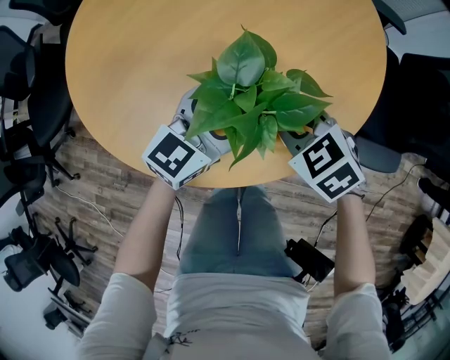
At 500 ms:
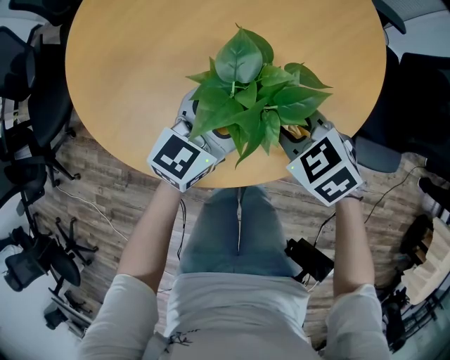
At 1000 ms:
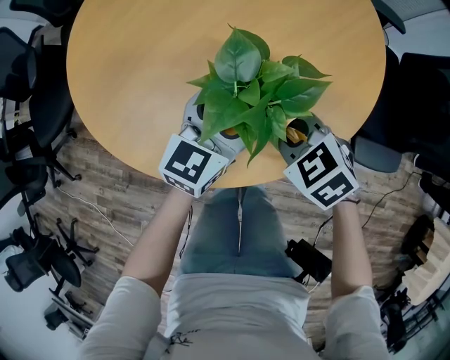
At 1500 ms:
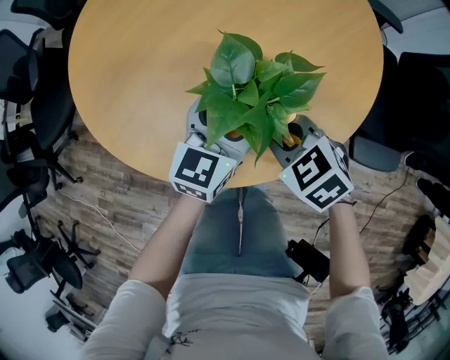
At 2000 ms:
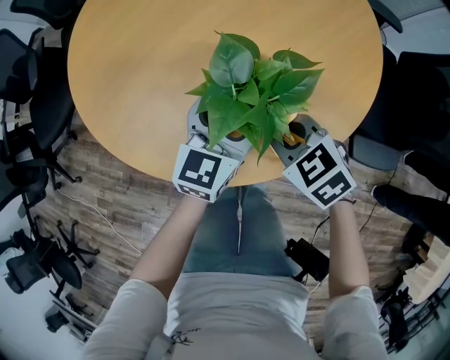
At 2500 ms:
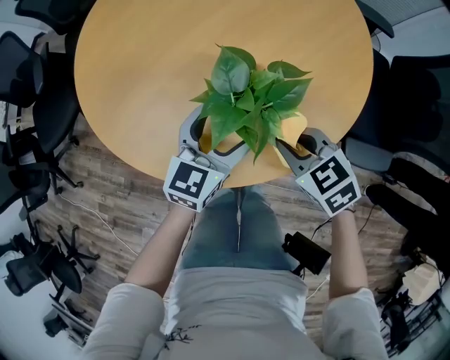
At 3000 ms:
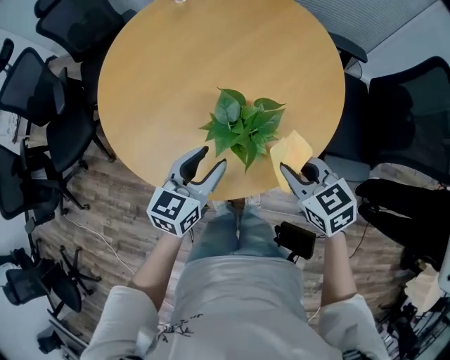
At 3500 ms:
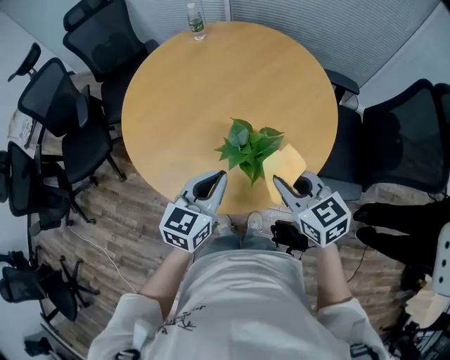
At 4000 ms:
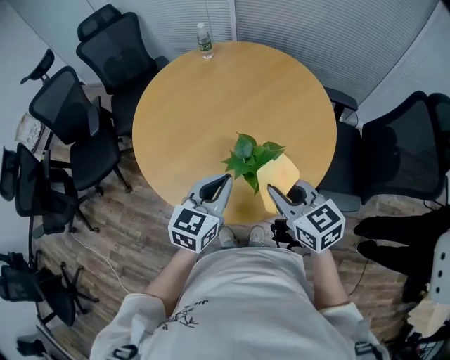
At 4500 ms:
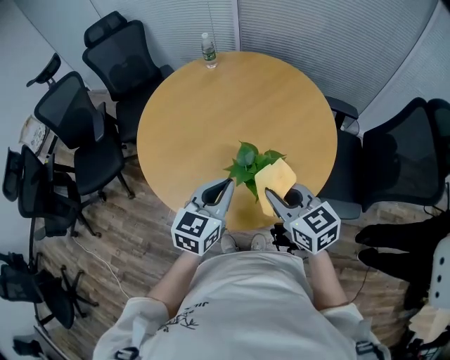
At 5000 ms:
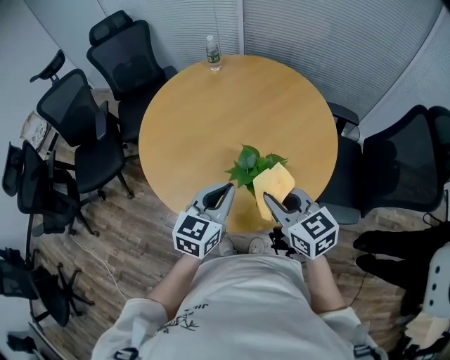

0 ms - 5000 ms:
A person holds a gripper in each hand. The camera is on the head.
2500 ms - 5000 ms: Both grippers travel together upward, roughly 20 cm. The left gripper closes up; the right gripper changes its angle by approximately 30 degrees.

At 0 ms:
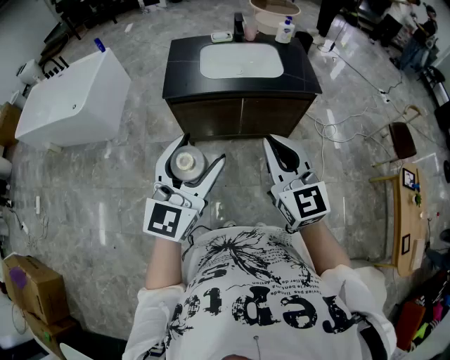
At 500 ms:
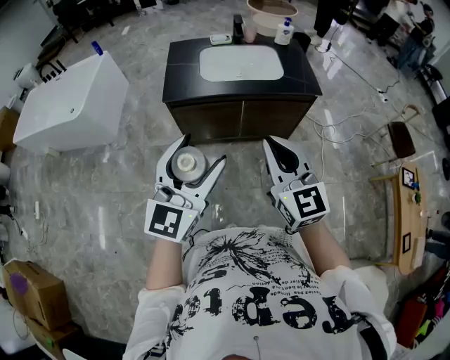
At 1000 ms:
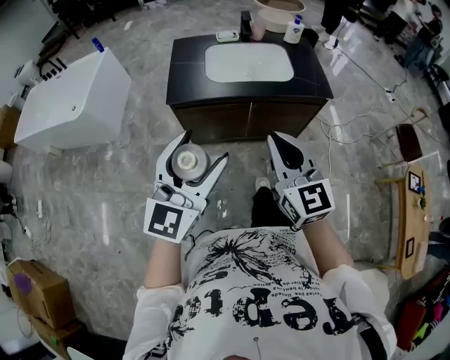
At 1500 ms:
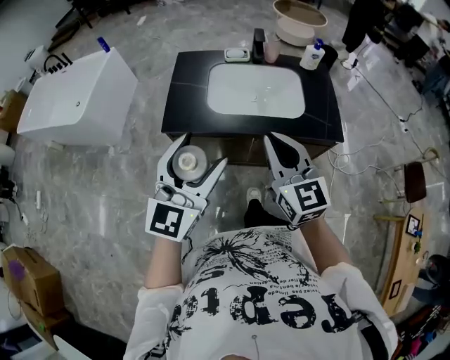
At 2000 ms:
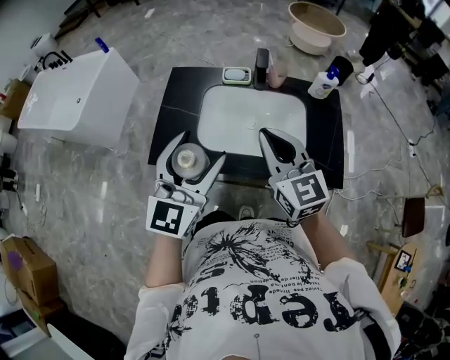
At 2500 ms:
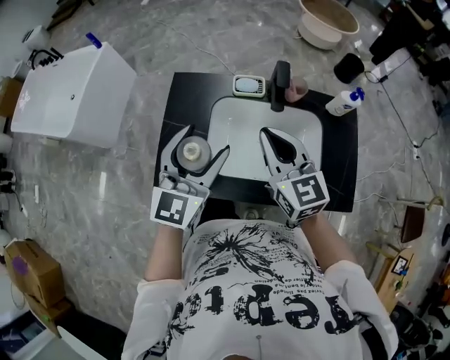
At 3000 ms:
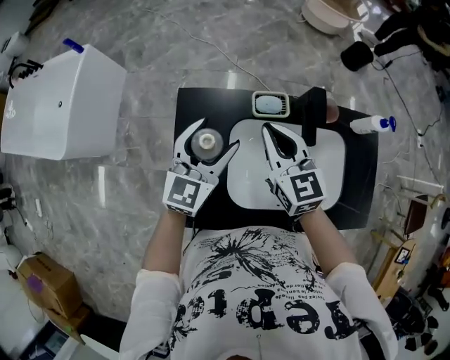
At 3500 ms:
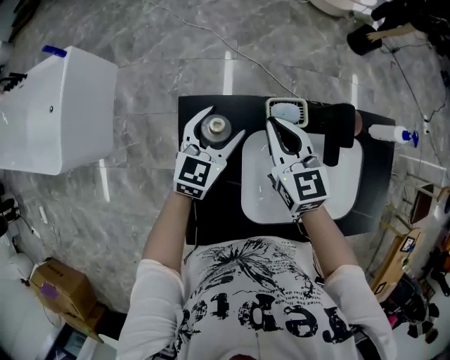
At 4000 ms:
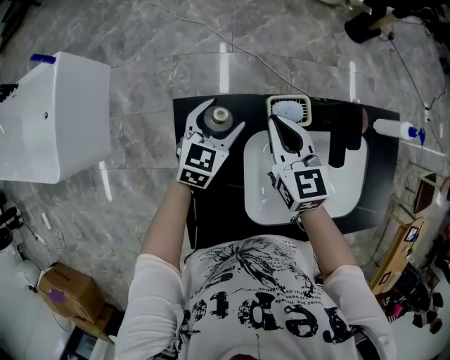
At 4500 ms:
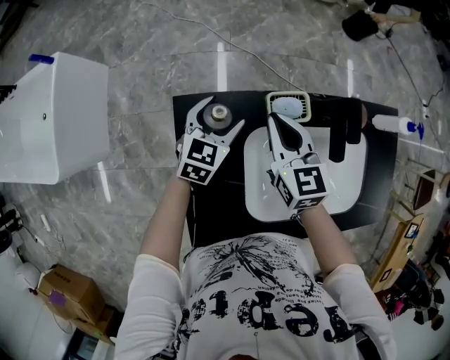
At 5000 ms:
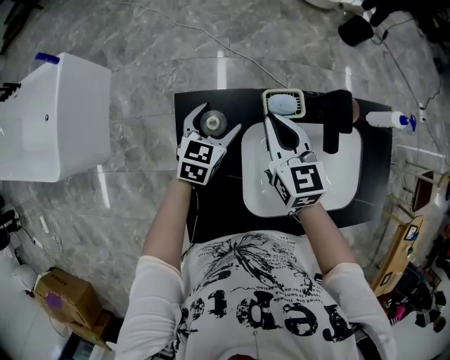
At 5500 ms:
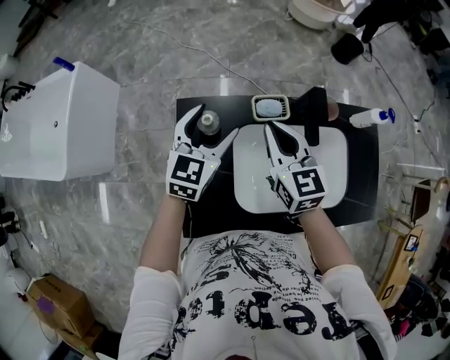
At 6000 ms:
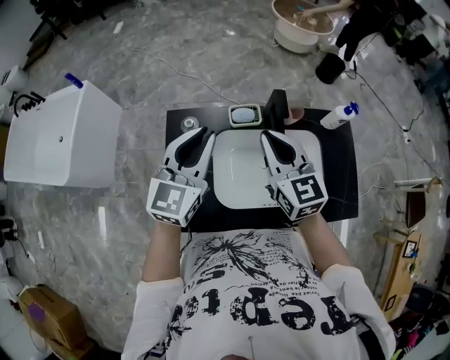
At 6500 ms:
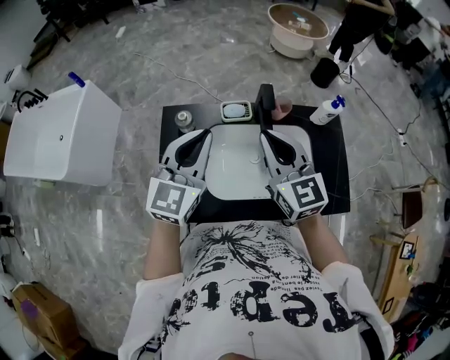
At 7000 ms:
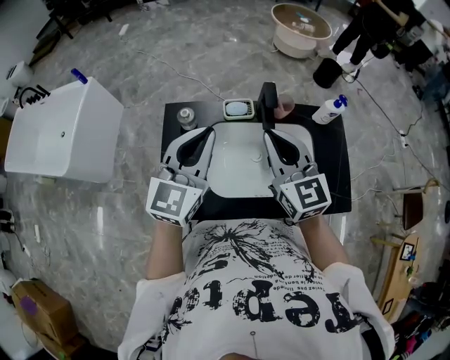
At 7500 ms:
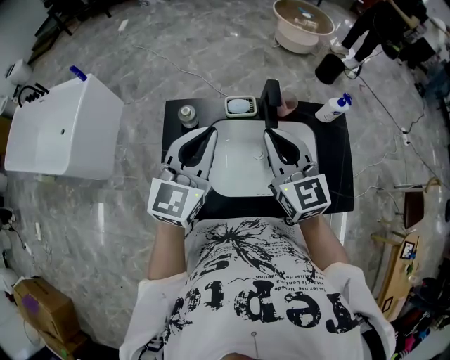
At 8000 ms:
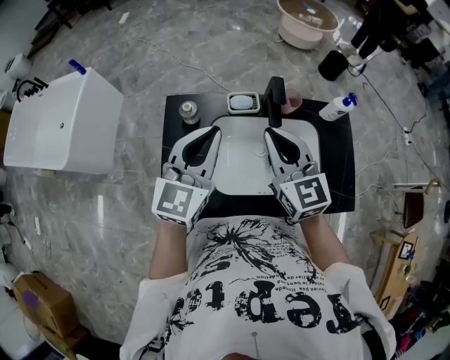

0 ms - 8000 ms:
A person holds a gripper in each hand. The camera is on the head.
0 ms - 2000 ms: The pair of grippers is taken forward, about 50 cm.
2000 ms - 4000 ms: The two grippers travel together, forward, roughly 50 cm. The two grippers go approximately 30 cm downward. The right gripper turns by approximately 30 degrees. Meanwhile the left gripper tips its fingers downward by some 30 degrees.
4000 ms - 6000 ms: The right gripper travels upward, backward and to the right by approximately 30 cm. Meanwhile the left gripper heads upward and backward, covering roughly 40 cm, changes its angle by approximately 20 degrees, and closes up.
6000 ms - 8000 ms: The left gripper changes place by some 5 cm.

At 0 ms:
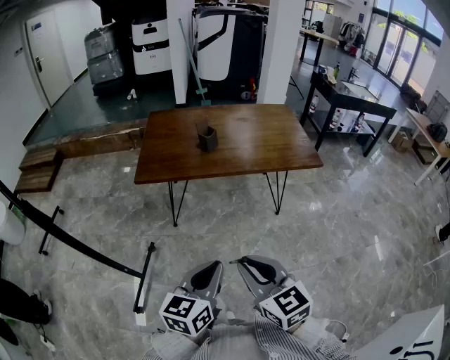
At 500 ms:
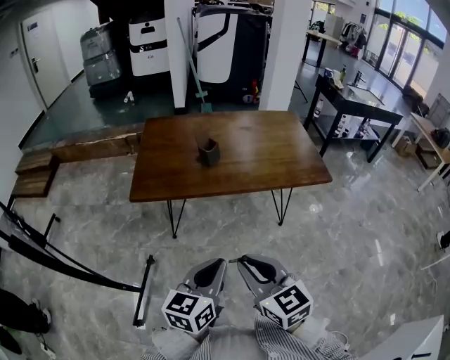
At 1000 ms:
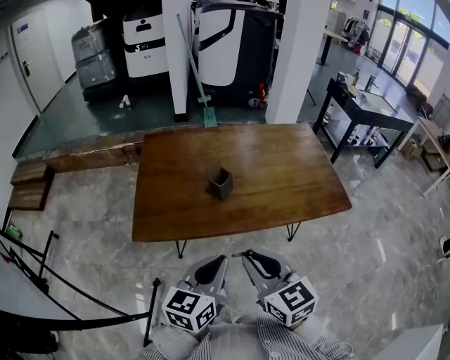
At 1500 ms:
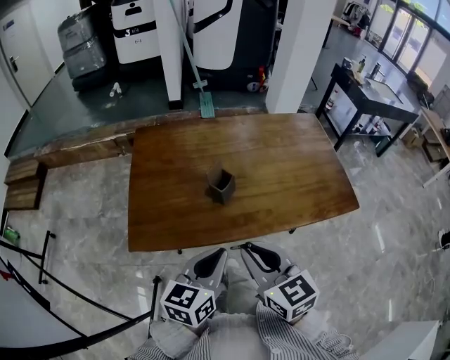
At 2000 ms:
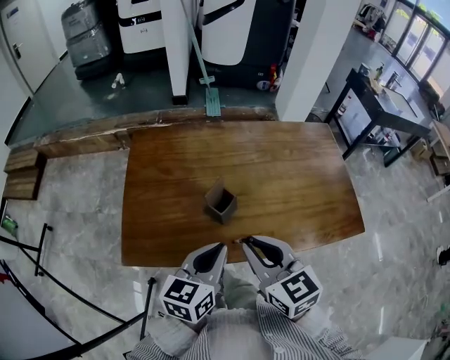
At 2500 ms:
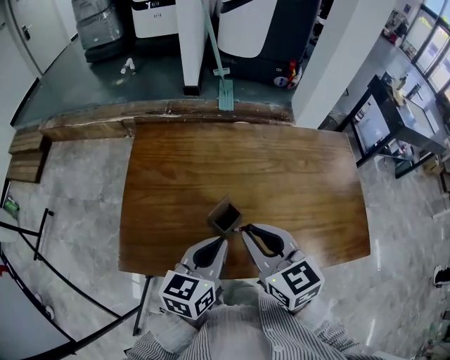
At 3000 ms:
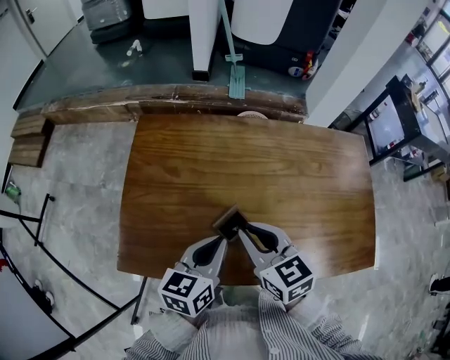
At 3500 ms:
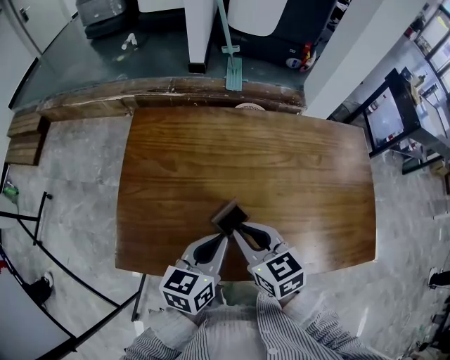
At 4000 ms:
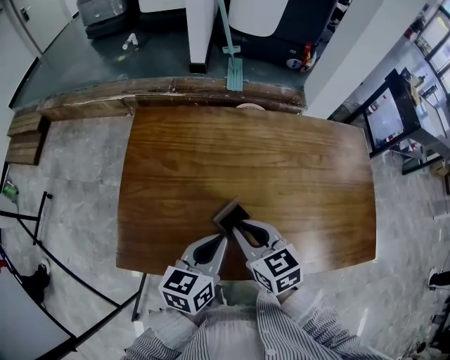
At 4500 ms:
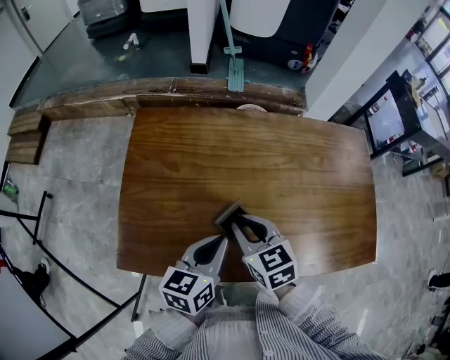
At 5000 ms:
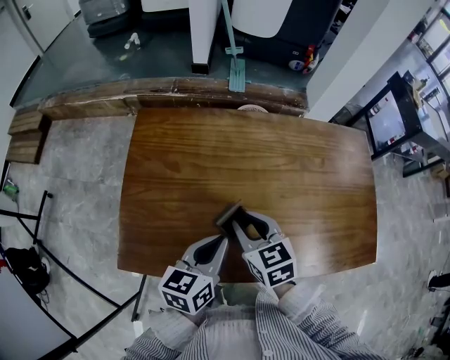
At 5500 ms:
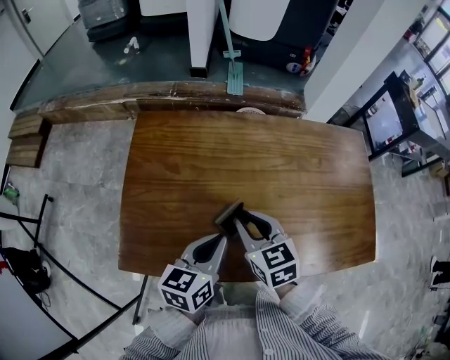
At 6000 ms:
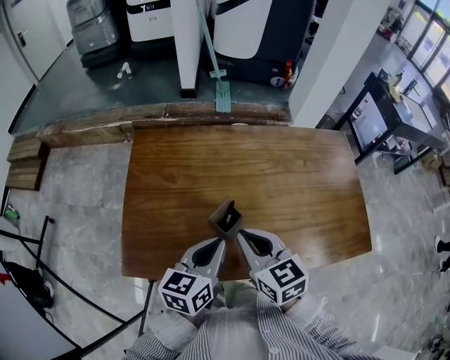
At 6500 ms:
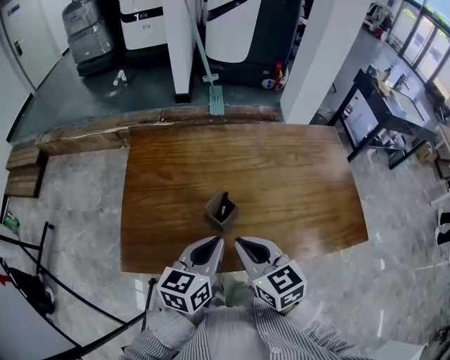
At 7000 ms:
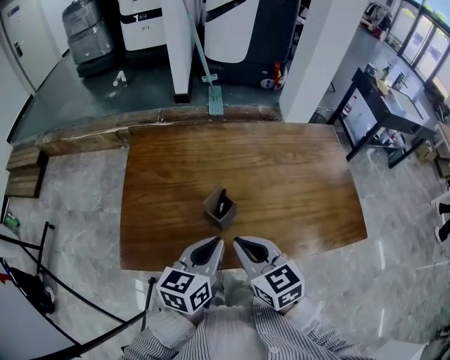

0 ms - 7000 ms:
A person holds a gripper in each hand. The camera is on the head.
0 ms - 2000 ms: The two grippers travel together, forward, some 50 cm.
2000 ms - 3500 ms: The two grippers go about 15 cm forward and downward.
3500 ms - 5000 ms: There are only small adjustments of the grippers.
5000 ms - 7000 ms: The left gripper heads backward and upward, covering some 10 cm; the right gripper travels backward and upward by approximately 15 cm, and closes its fingers.

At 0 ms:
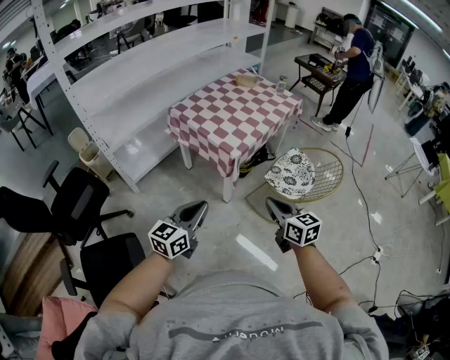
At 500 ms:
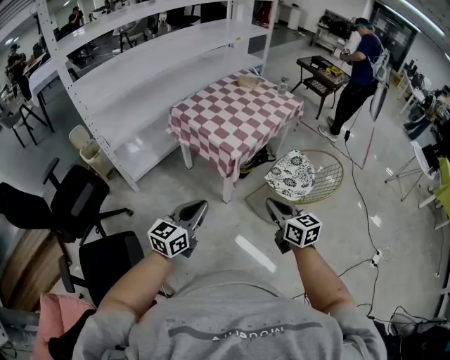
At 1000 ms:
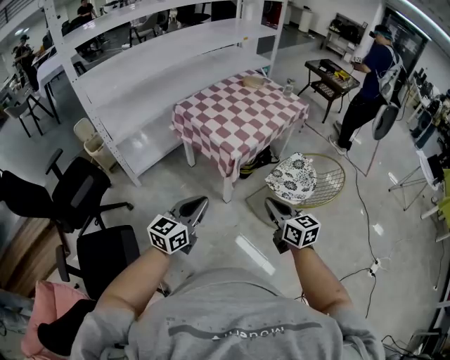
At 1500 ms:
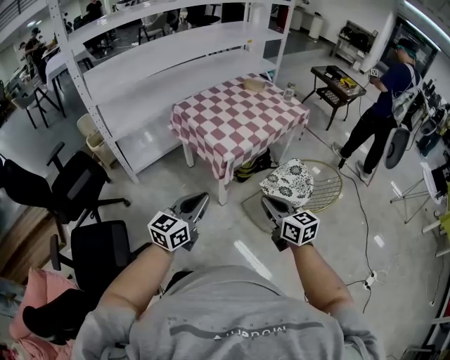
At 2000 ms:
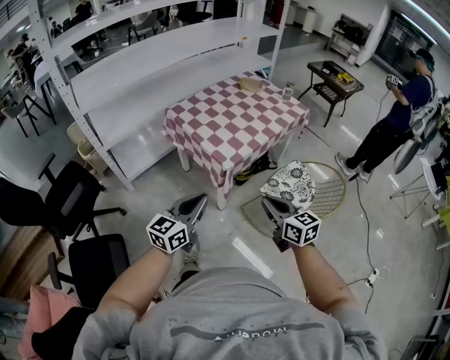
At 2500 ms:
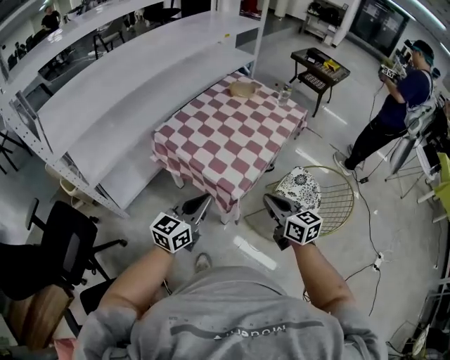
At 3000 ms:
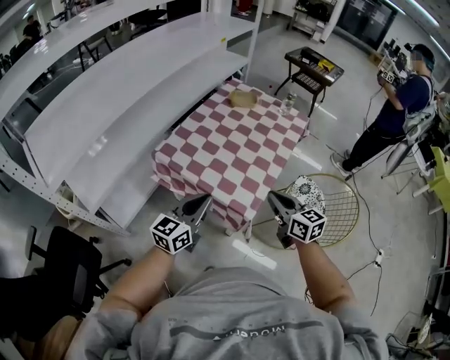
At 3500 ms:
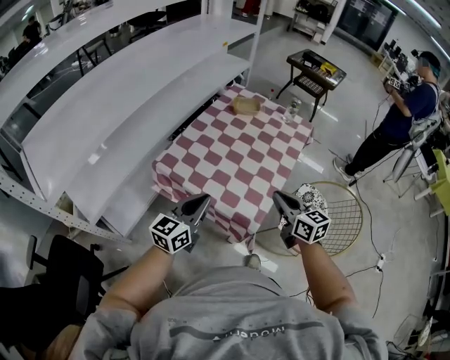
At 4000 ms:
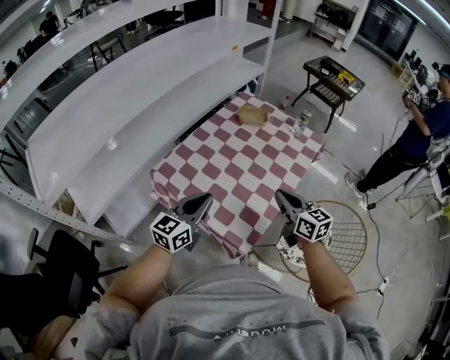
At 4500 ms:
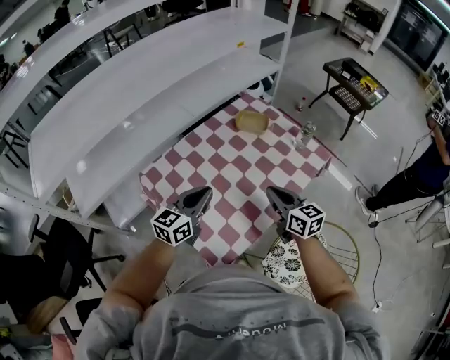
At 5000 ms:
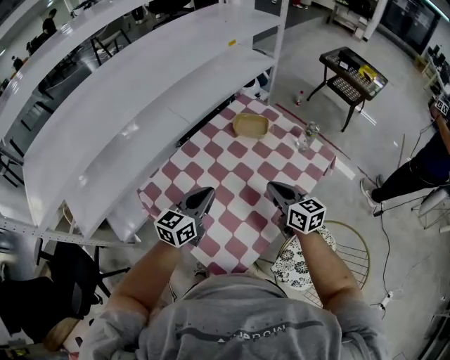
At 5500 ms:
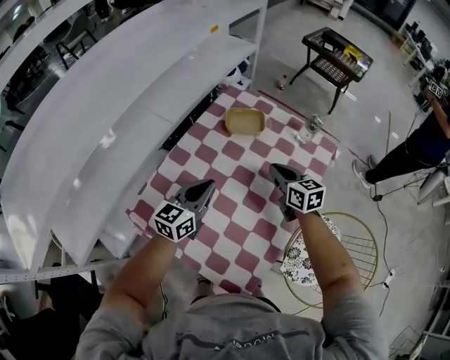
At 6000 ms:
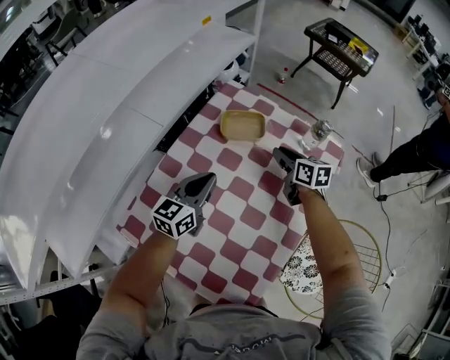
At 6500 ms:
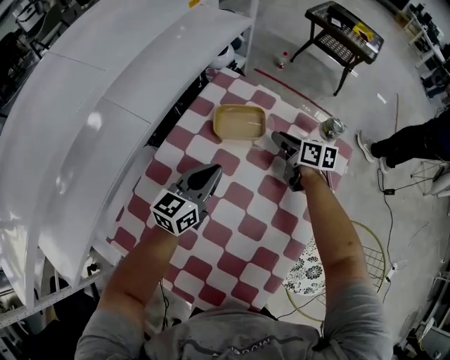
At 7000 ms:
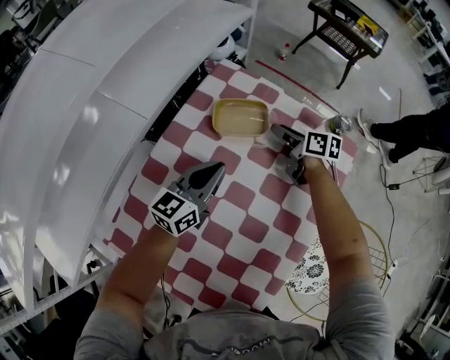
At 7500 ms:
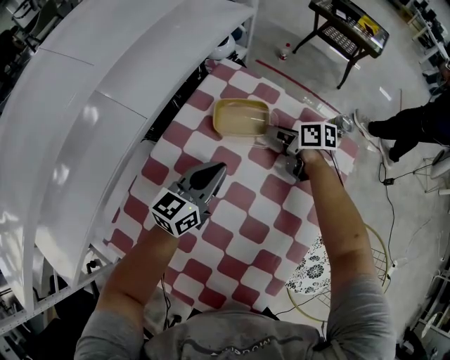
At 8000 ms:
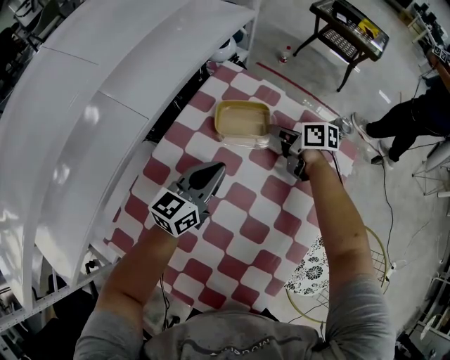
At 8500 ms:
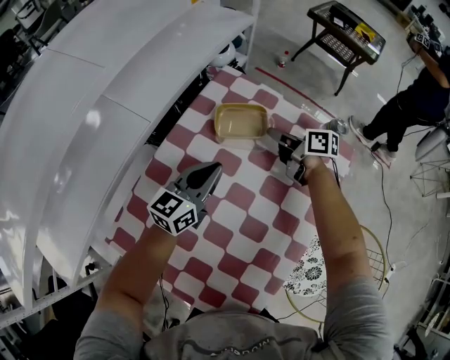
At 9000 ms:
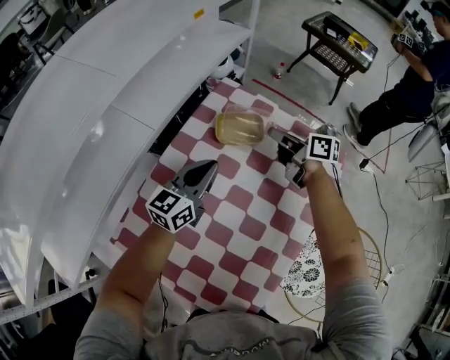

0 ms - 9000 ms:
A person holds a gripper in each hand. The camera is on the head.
0 ms - 2000 ms: The left gripper heads forward and to the right, covering roughly 10 cm. The right gripper goes approximately 10 cm forward.
2000 ms - 4500 ms: The two grippers travel together, forward, some 50 cm.
4500 ms - 7000 ms: Both grippers move forward and downward, some 35 cm. The right gripper swivels about 30 degrees, and opens.
7000 ms - 9000 ms: The left gripper goes some 5 cm upward, while the right gripper goes roughly 10 cm upward, and closes.
